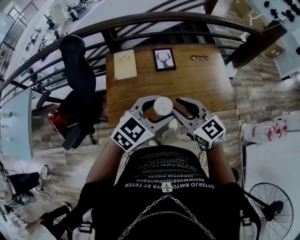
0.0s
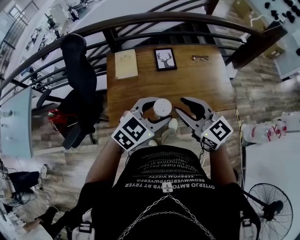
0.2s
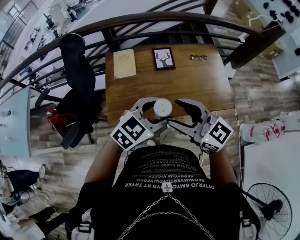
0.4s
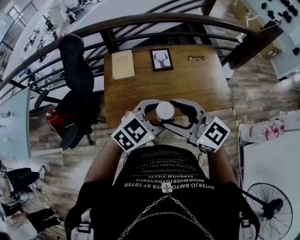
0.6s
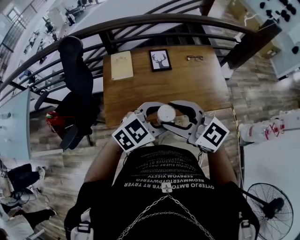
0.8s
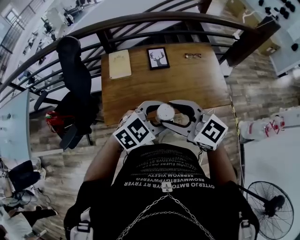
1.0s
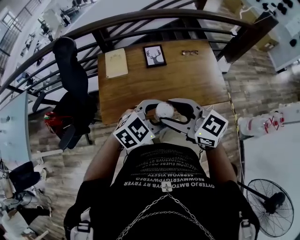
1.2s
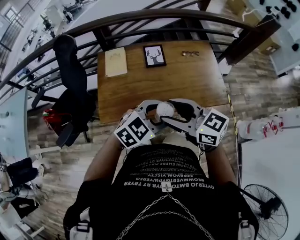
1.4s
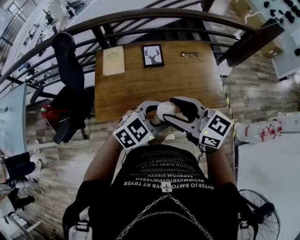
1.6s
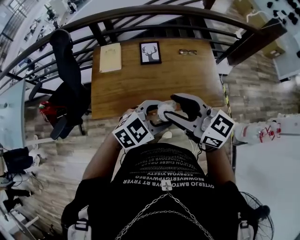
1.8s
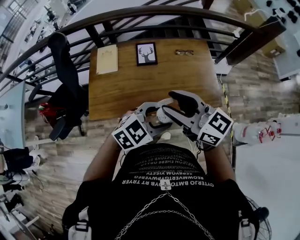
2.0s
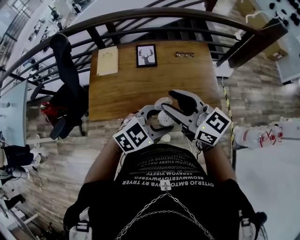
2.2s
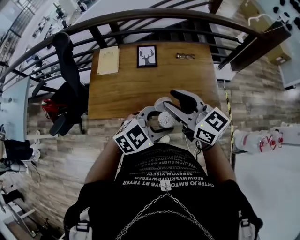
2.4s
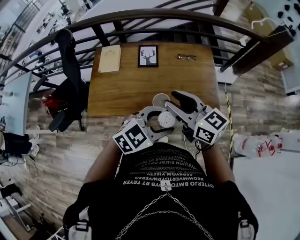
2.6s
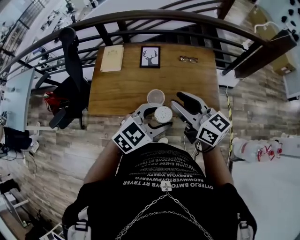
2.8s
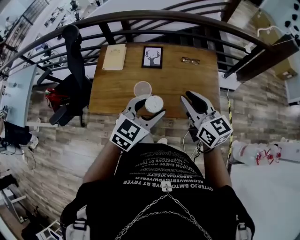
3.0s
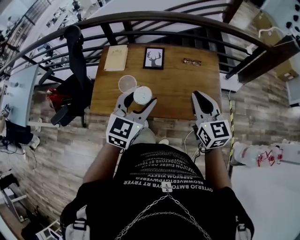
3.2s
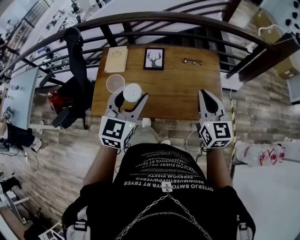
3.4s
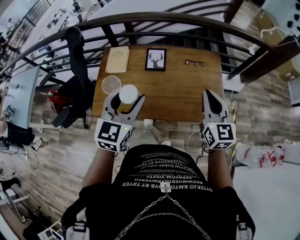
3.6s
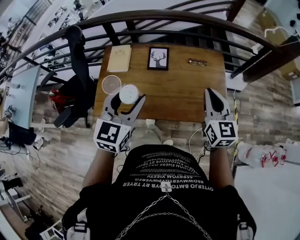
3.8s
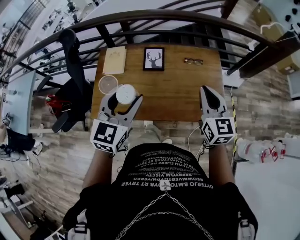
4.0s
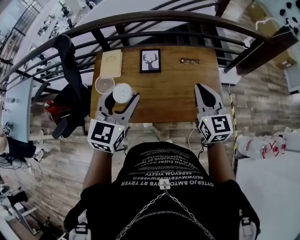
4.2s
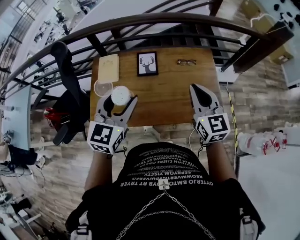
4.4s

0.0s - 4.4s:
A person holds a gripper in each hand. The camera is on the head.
0.0s - 1.4s: The left gripper moves roughly 10 cm. The right gripper moves approximately 5 cm, and opens its fingers.
1.4s - 3.0s: The left gripper moves roughly 10 cm, and rotates about 30 degrees; the right gripper ends up some 25 cm from where it was, and closes up.
3.0s - 4.4s: The left gripper travels to the left, forward and upward by about 15 cm. The right gripper moves forward, roughly 10 cm, rotates some 20 degrees, and closes its fingers.

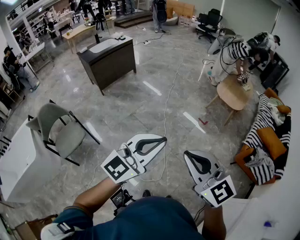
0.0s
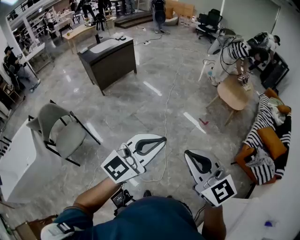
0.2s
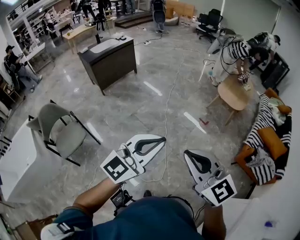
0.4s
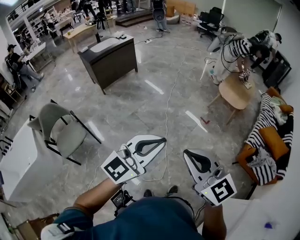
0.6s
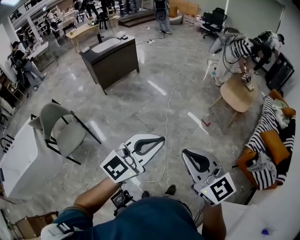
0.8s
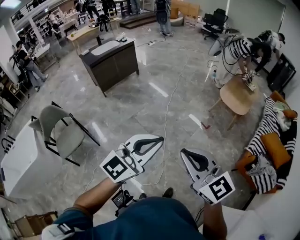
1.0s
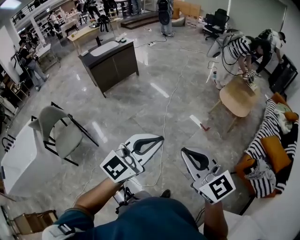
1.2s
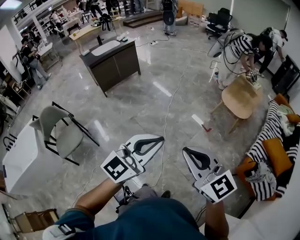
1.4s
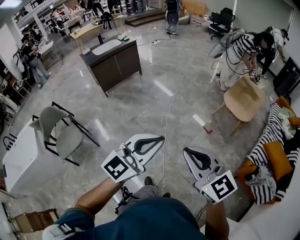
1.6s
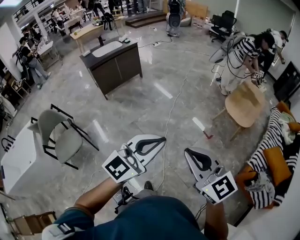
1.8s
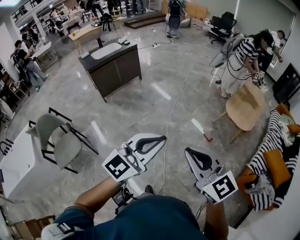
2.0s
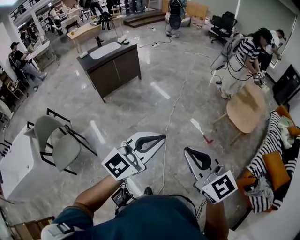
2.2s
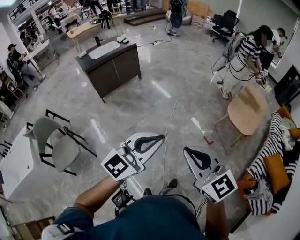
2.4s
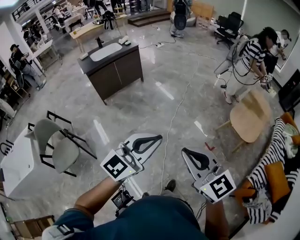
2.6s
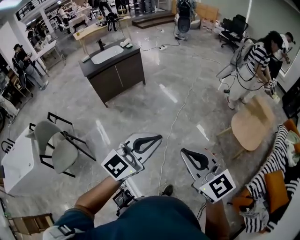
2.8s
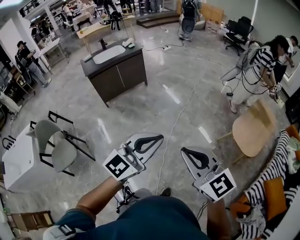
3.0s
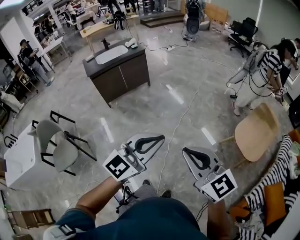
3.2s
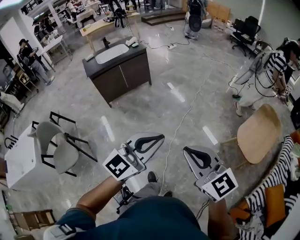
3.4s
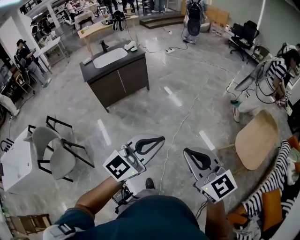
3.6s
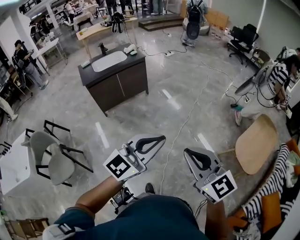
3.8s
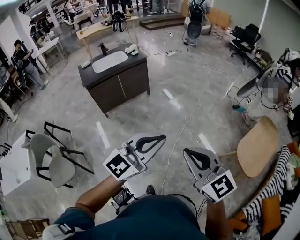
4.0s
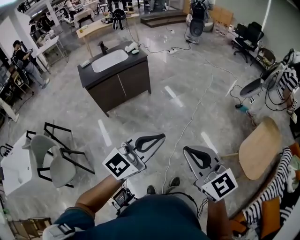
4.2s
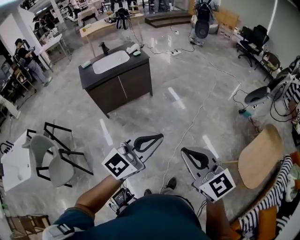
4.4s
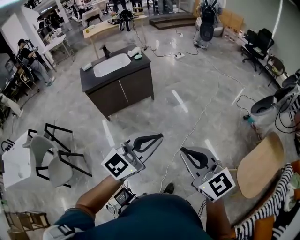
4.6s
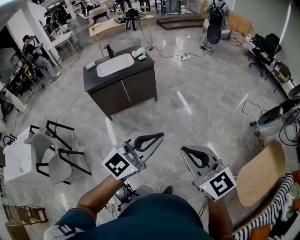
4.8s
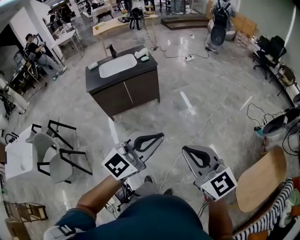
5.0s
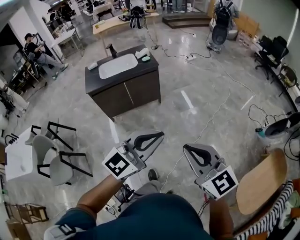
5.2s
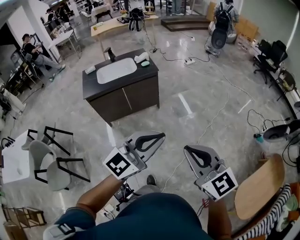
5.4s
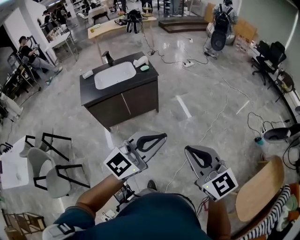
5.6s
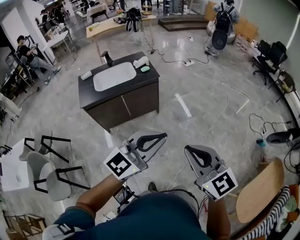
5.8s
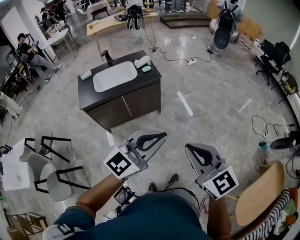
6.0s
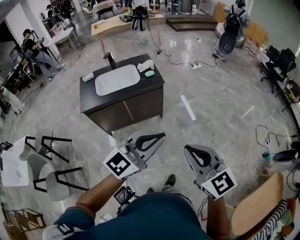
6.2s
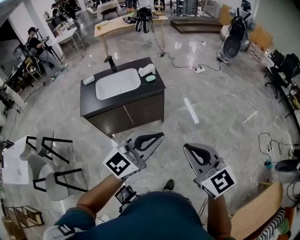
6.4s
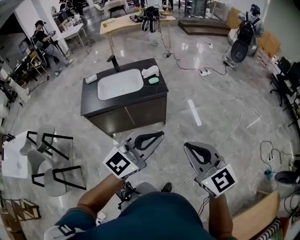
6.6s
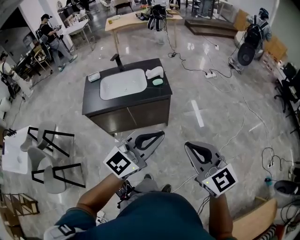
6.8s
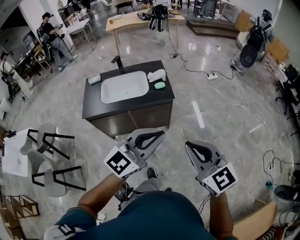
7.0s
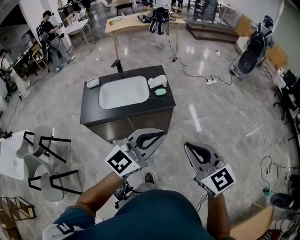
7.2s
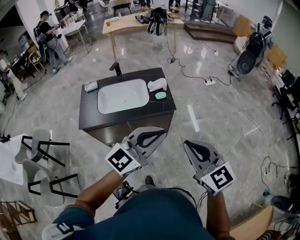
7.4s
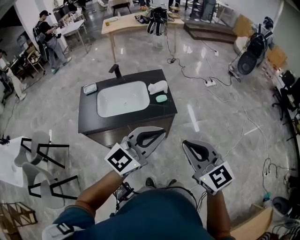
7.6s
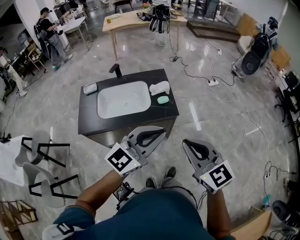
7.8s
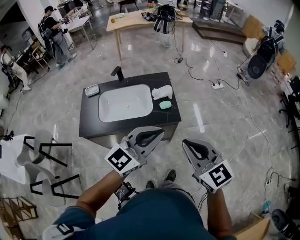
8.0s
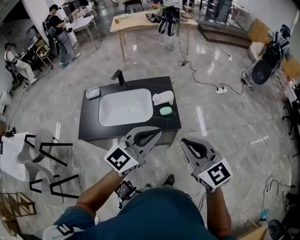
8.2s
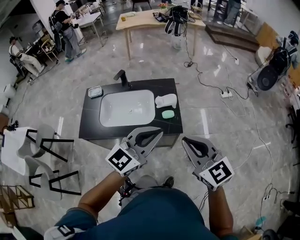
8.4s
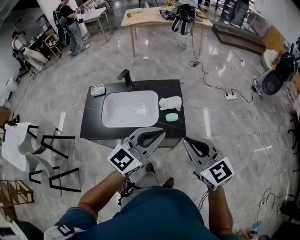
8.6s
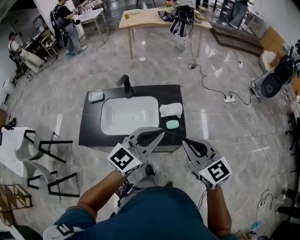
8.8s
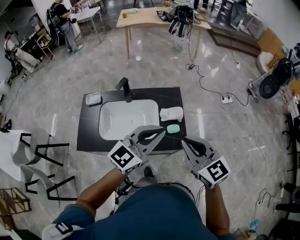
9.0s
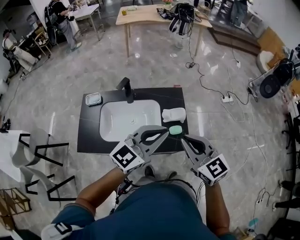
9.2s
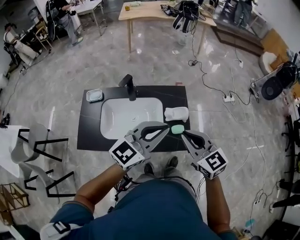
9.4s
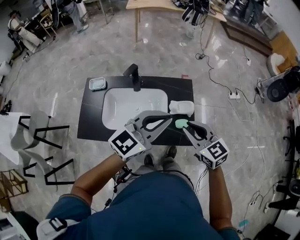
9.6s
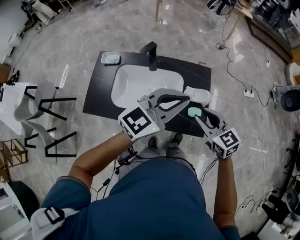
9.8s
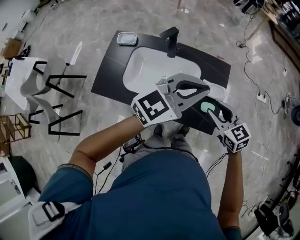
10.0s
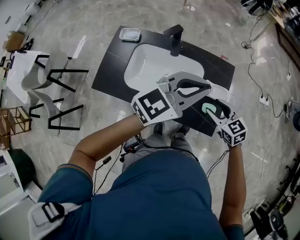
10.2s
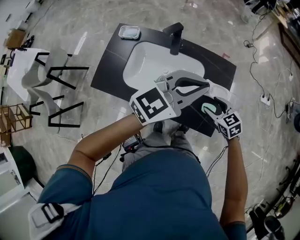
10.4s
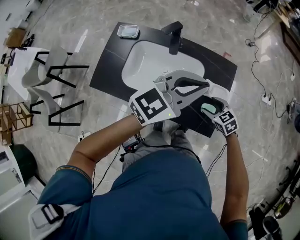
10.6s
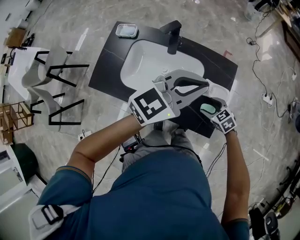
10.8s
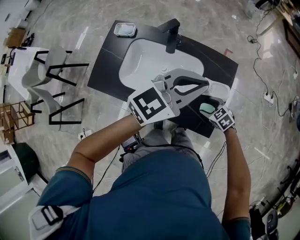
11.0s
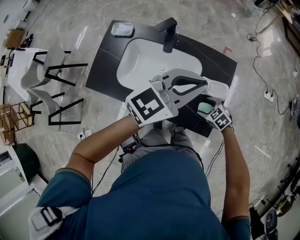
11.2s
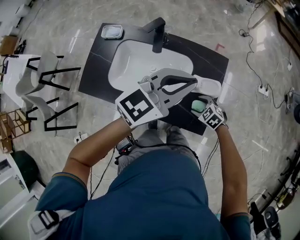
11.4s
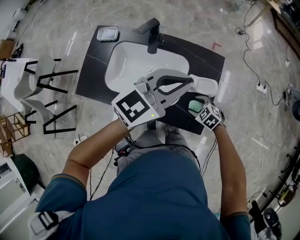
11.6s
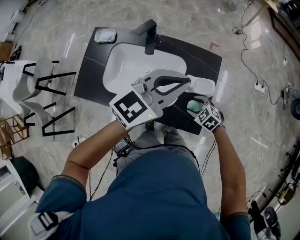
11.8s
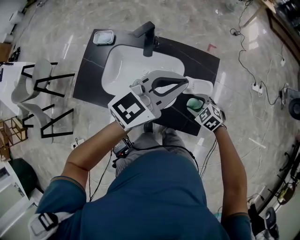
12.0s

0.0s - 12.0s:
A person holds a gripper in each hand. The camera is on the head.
0.0s - 1.6s: Both grippers travel together forward and to the right, some 20 cm.
1.6s - 3.0s: The grippers both shift forward by some 30 cm.
3.0s - 4.4s: Both grippers travel together forward, some 30 cm.
4.4s - 6.0s: Both grippers move forward, some 35 cm.
6.0s - 7.6s: The two grippers go some 35 cm forward.
7.6s - 9.0s: Both grippers travel together forward, about 30 cm.
9.0s - 10.4s: The right gripper shifts roughly 35 cm downward and forward, points its fingers some 30 degrees further downward, and opens its fingers. Meanwhile the left gripper shifts some 15 cm forward and downward.
10.4s - 12.0s: The right gripper travels downward by about 5 cm, and turns by some 20 degrees.

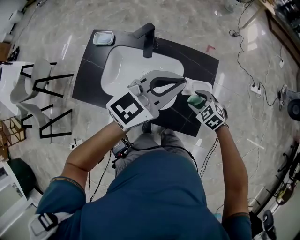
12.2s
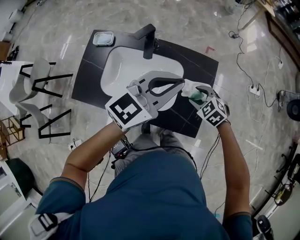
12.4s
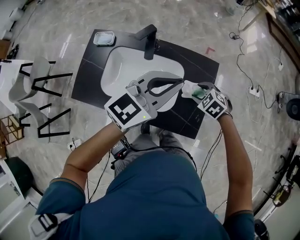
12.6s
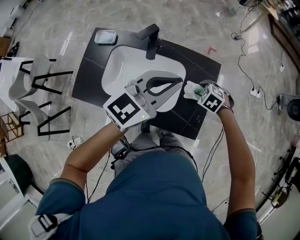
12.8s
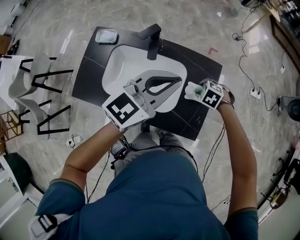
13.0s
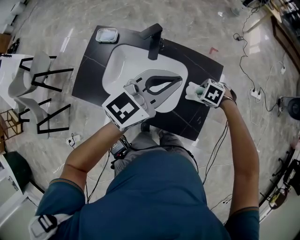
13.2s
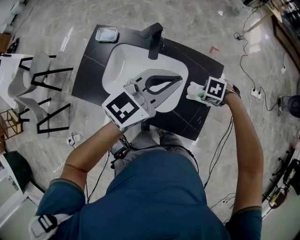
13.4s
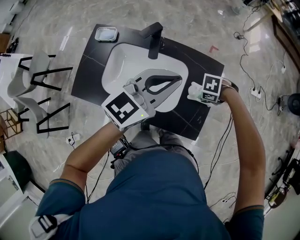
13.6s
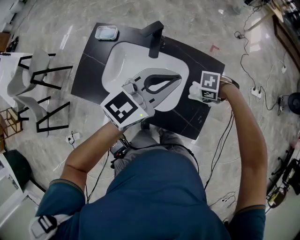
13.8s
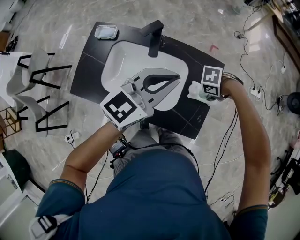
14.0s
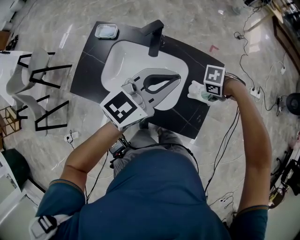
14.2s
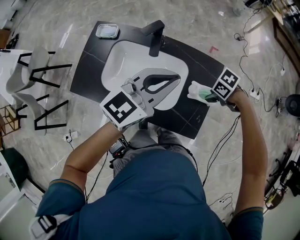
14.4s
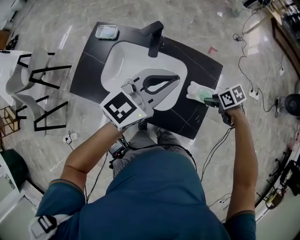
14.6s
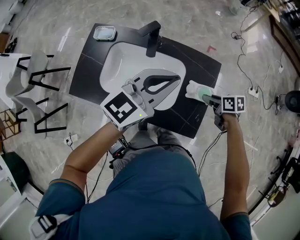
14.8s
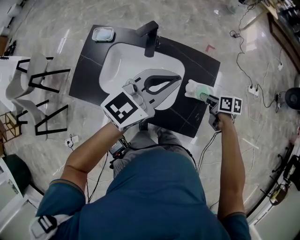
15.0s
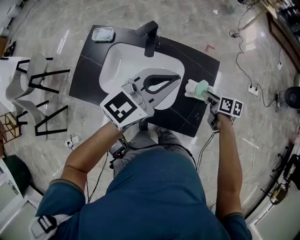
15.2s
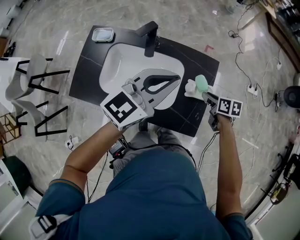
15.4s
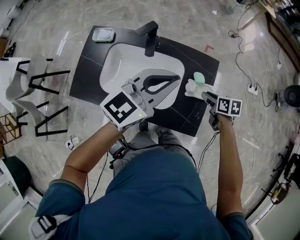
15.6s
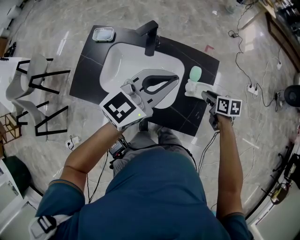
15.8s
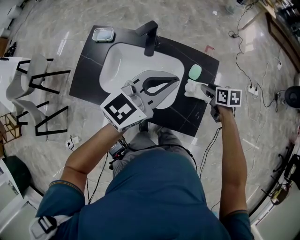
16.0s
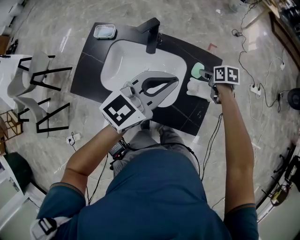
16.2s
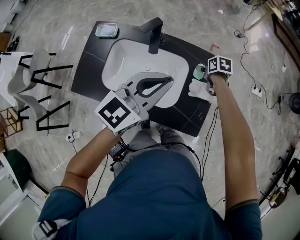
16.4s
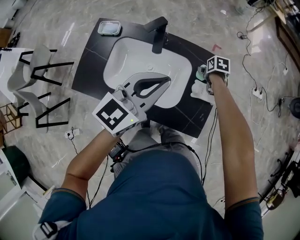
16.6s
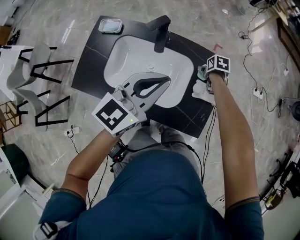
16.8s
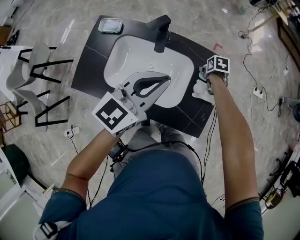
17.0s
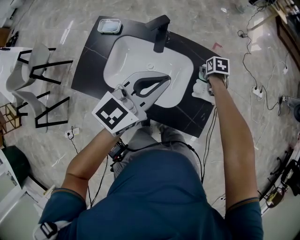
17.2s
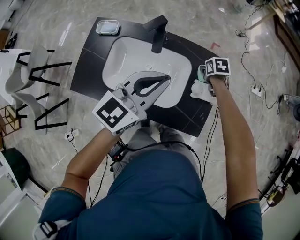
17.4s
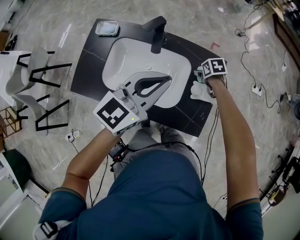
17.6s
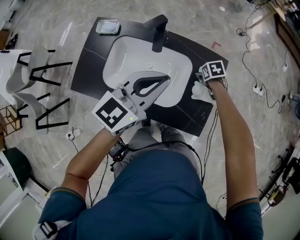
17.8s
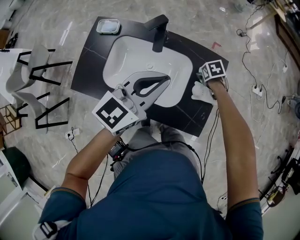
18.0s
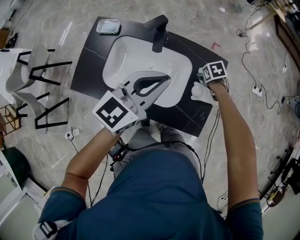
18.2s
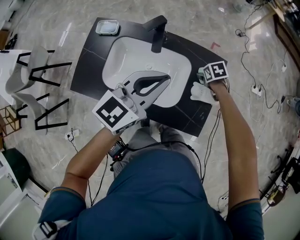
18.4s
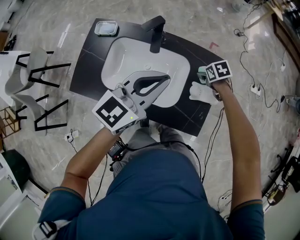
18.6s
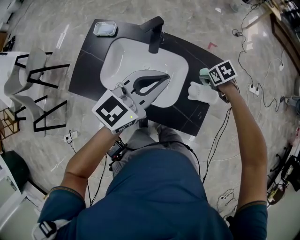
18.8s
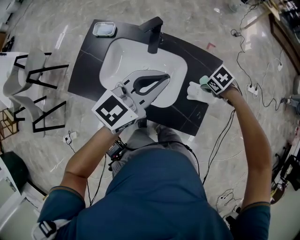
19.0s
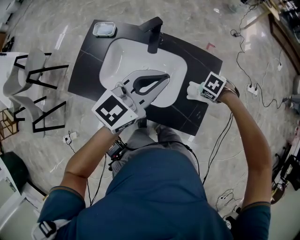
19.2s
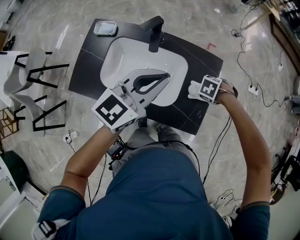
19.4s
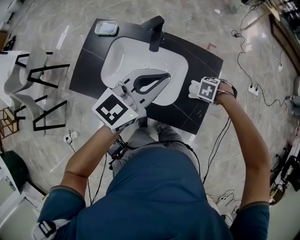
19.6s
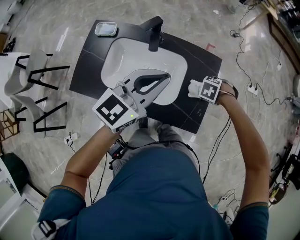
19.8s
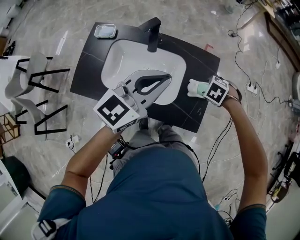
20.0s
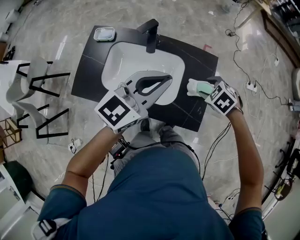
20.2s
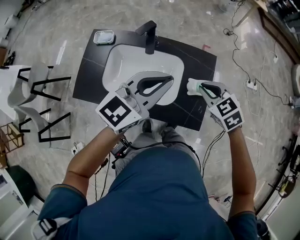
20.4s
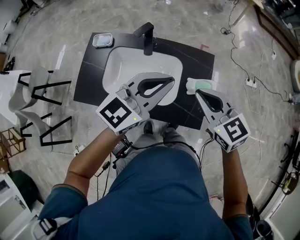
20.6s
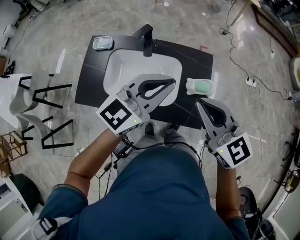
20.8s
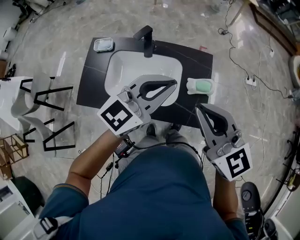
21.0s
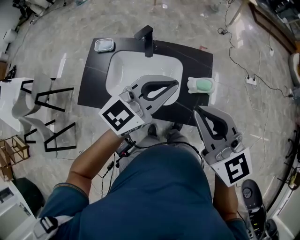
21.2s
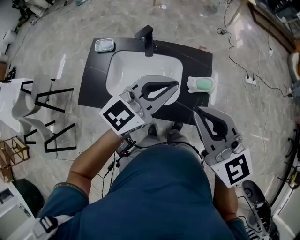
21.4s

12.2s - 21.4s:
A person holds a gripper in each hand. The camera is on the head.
12.2s - 13.8s: The right gripper changes its angle by roughly 60 degrees. The left gripper moves about 5 cm.
13.8s - 15.2s: The right gripper swivels approximately 100 degrees.
15.2s - 16.8s: The right gripper moves about 15 cm, turns by approximately 30 degrees, and opens its fingers; the left gripper moves about 5 cm.
16.8s - 18.4s: The right gripper changes its angle by approximately 20 degrees.
18.4s - 19.8s: The right gripper moves some 10 cm, and rolls counterclockwise, seen from behind, by approximately 50 degrees.
19.8s - 21.4s: The left gripper changes place by approximately 10 cm. The right gripper shifts approximately 40 cm upward, tips its fingers upward by approximately 70 degrees, and closes its fingers.
